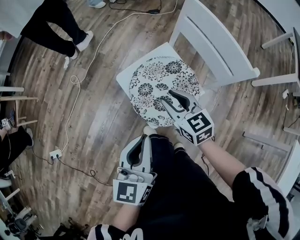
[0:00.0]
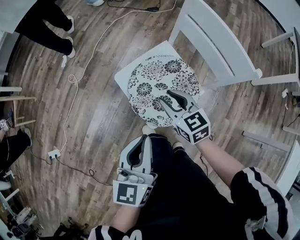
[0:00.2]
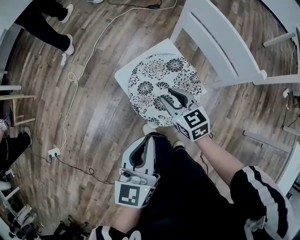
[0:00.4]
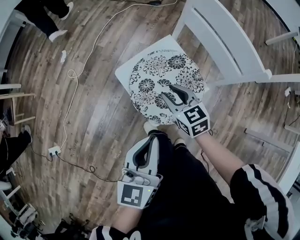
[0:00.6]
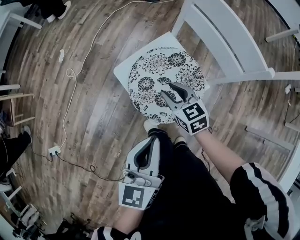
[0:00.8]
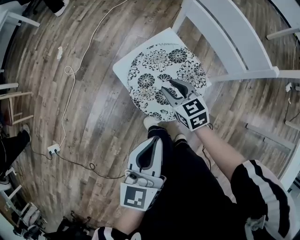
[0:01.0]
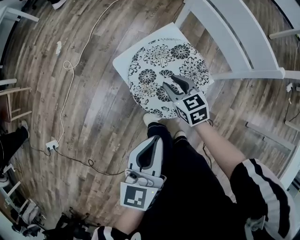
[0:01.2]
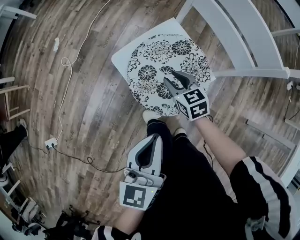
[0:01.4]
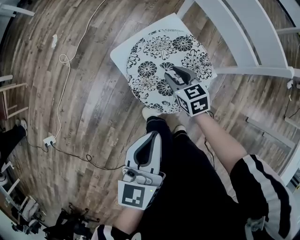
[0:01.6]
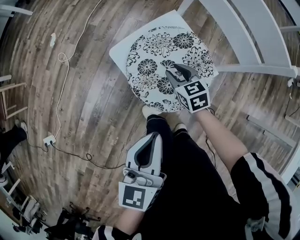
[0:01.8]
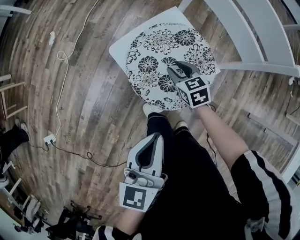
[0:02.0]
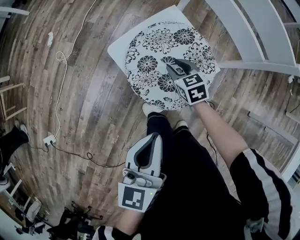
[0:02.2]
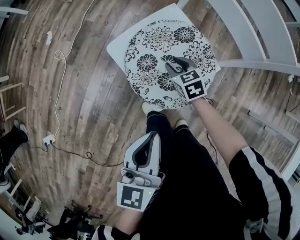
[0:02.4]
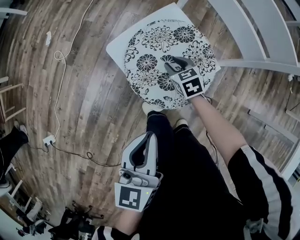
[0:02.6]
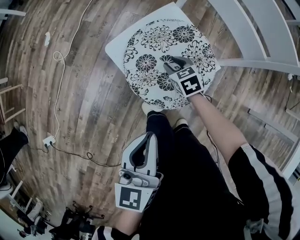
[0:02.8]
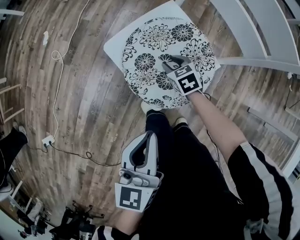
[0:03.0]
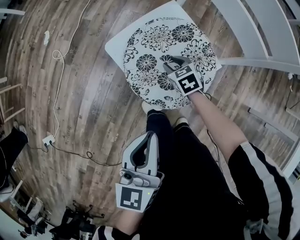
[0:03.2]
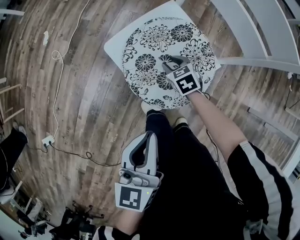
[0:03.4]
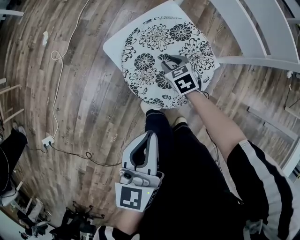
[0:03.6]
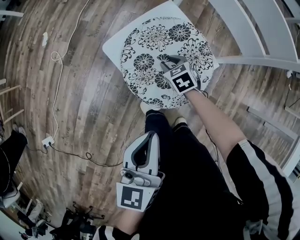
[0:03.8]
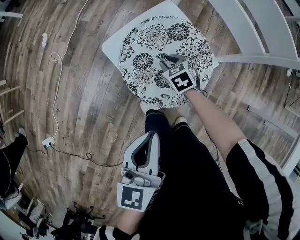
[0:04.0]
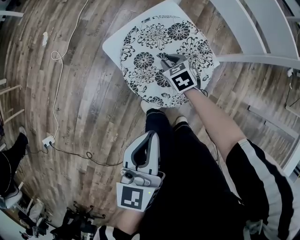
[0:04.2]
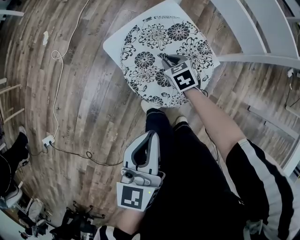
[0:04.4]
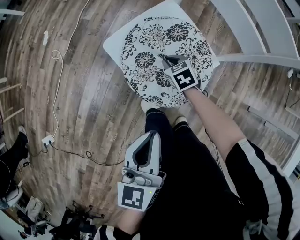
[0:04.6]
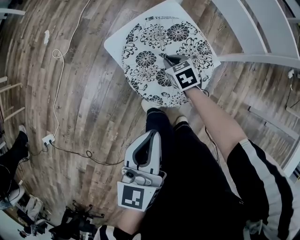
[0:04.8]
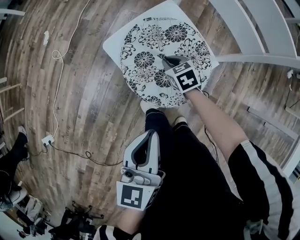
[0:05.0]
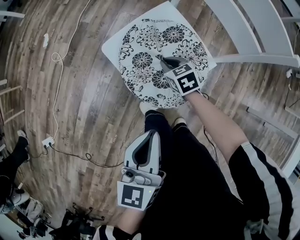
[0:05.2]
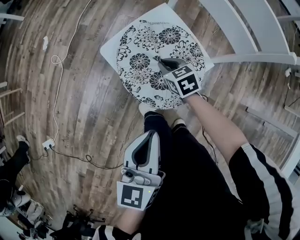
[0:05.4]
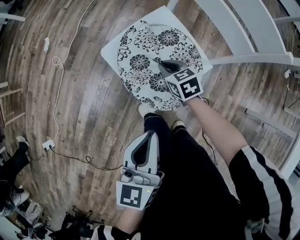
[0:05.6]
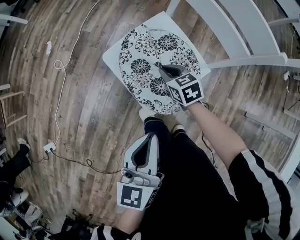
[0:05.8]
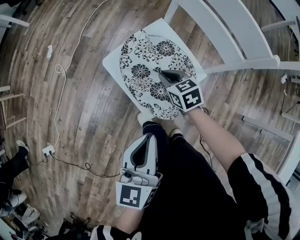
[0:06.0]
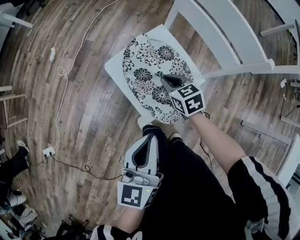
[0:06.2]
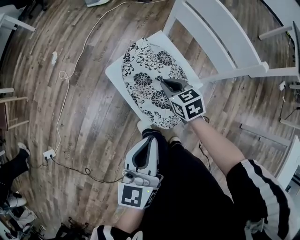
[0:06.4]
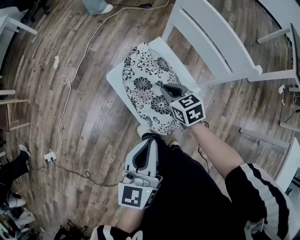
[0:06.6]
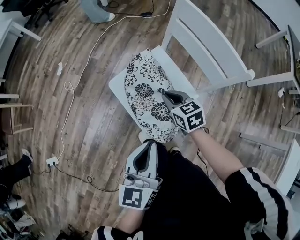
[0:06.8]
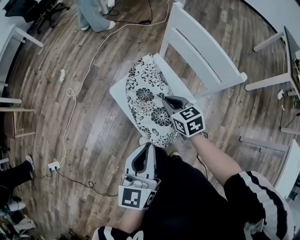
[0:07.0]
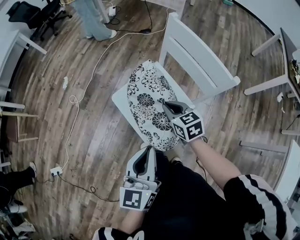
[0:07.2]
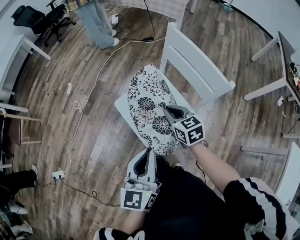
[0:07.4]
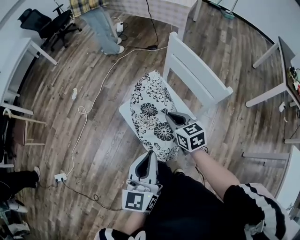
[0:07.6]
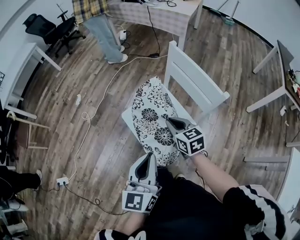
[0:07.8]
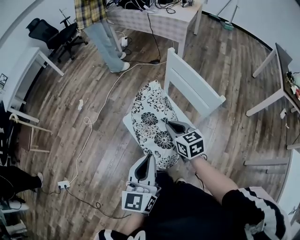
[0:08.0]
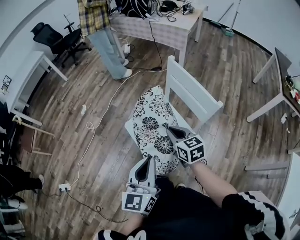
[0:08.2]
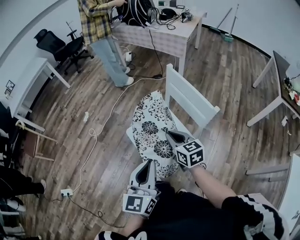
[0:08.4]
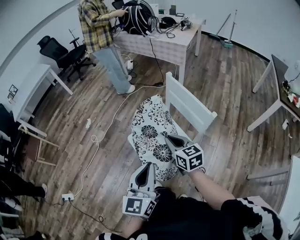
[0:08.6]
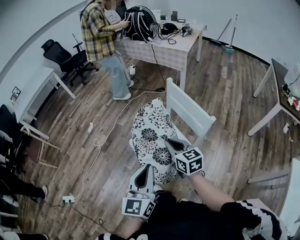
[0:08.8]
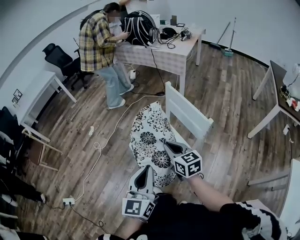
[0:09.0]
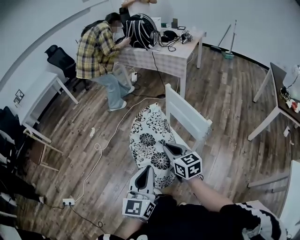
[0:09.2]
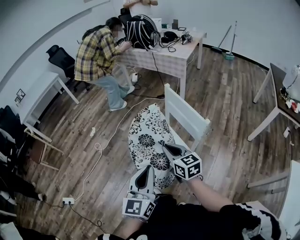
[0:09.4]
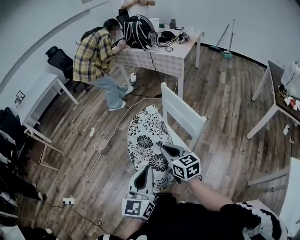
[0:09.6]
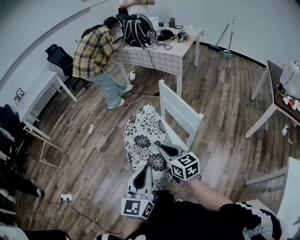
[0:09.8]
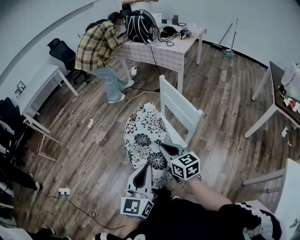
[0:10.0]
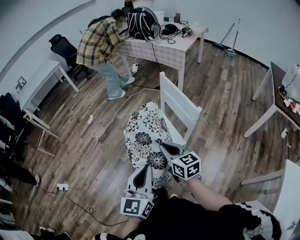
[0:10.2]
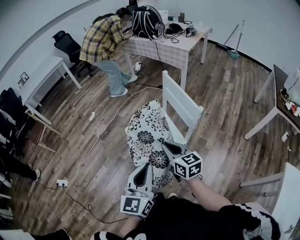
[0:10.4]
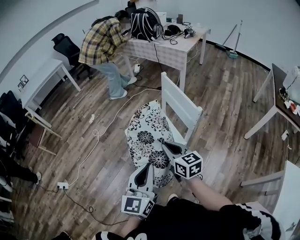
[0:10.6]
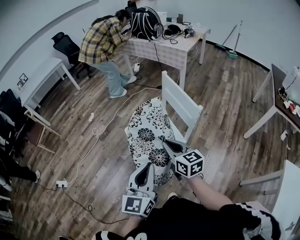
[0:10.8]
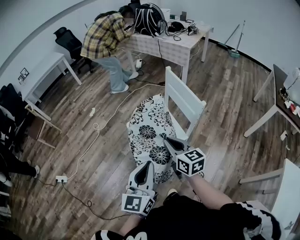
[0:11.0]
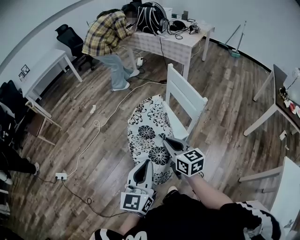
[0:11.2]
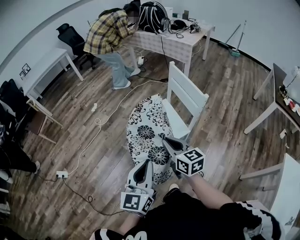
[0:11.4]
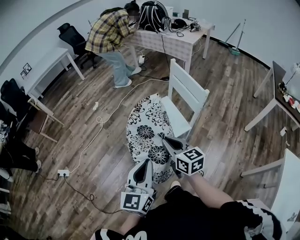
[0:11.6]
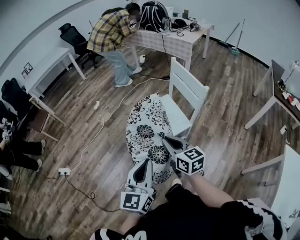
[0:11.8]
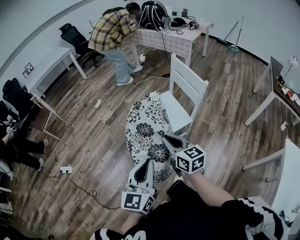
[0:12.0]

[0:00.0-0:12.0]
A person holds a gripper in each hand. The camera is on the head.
0:00.0 to 0:01.6: The right gripper is displaced downward by about 15 cm. The left gripper shifts approximately 5 cm downward.
0:01.6 to 0:03.0: The right gripper is displaced downward by roughly 10 cm.
0:03.0 to 0:04.4: The grippers make only small movements.
0:04.4 to 0:06.0: The right gripper moves upward, roughly 10 cm.
0:06.0 to 0:07.6: The left gripper heads upward, covering about 10 cm; the right gripper travels upward by about 20 cm.
0:07.6 to 0:09.0: The grippers both shift upward by approximately 10 cm.
0:09.0 to 0:10.4: The two grippers go about 10 cm backward.
0:10.4 to 0:12.0: Both grippers move backward and to the left, about 20 cm.

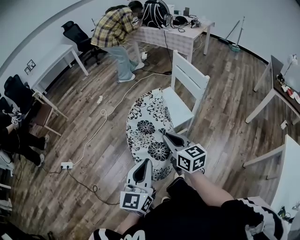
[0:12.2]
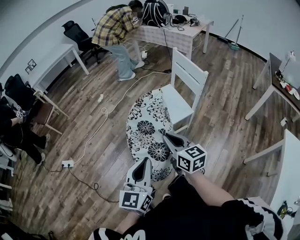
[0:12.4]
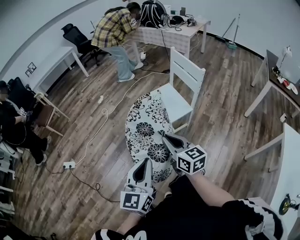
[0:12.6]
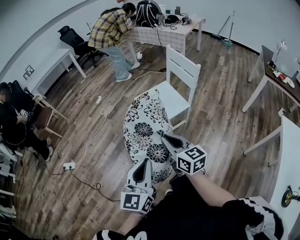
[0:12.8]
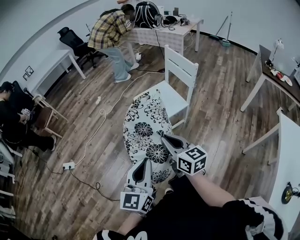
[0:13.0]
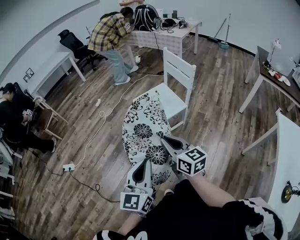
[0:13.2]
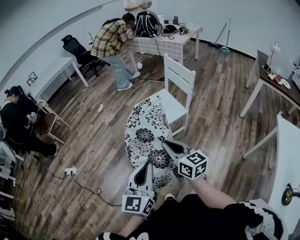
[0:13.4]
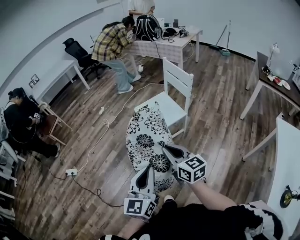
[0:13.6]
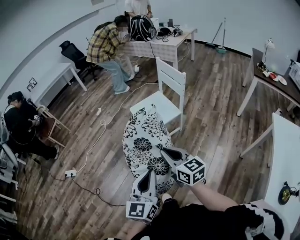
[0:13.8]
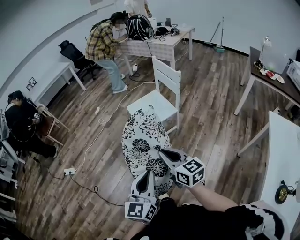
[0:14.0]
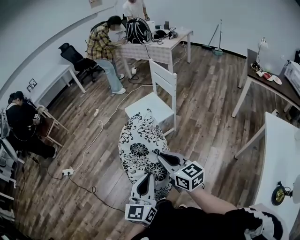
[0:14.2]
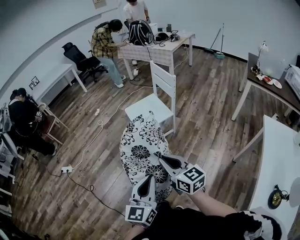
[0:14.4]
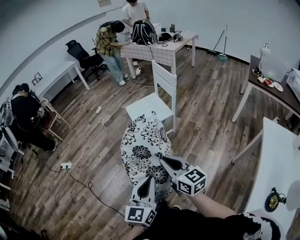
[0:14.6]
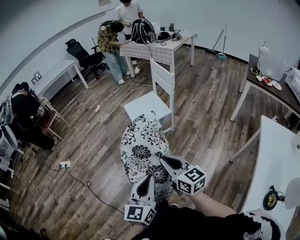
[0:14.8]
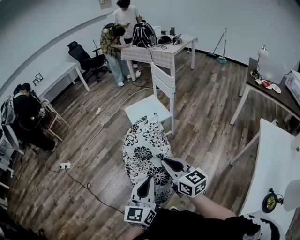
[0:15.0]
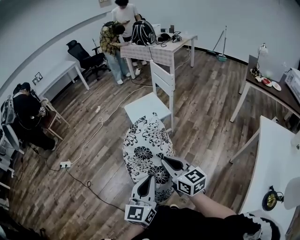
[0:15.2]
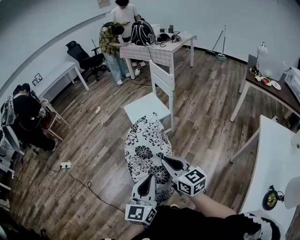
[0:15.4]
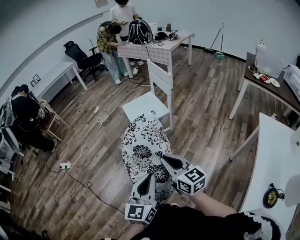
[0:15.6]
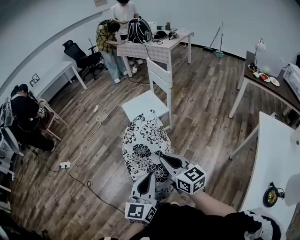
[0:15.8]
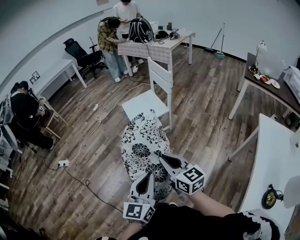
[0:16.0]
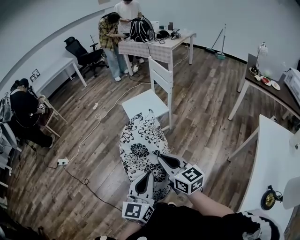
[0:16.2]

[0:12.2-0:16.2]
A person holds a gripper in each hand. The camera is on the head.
0:12.2 to 0:13.6: The two grippers go approximately 15 cm backward.
0:13.6 to 0:14.8: The two grippers go roughly 20 cm backward and to the right.
0:14.8 to 0:16.2: The grippers make only small movements.

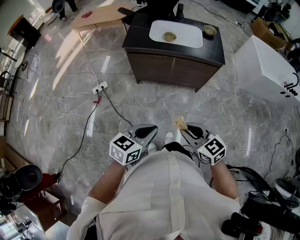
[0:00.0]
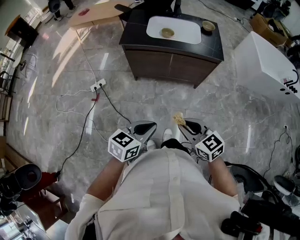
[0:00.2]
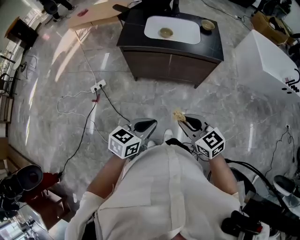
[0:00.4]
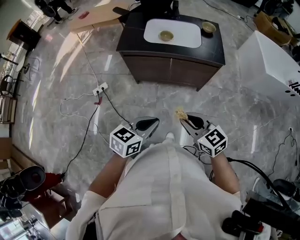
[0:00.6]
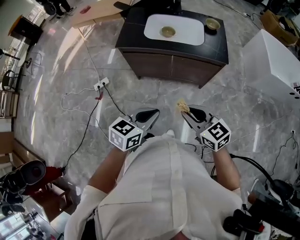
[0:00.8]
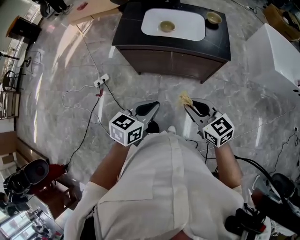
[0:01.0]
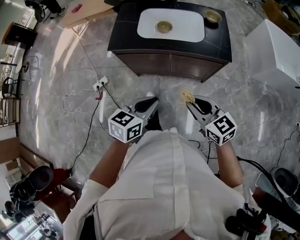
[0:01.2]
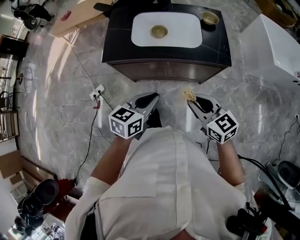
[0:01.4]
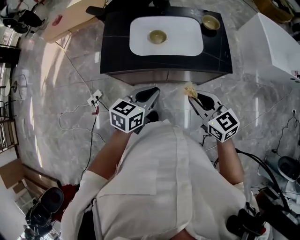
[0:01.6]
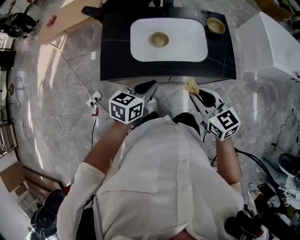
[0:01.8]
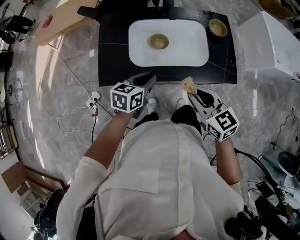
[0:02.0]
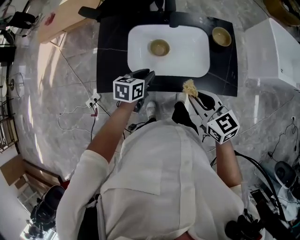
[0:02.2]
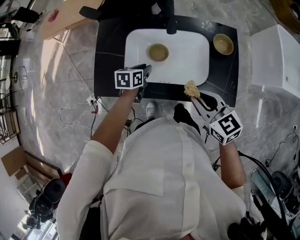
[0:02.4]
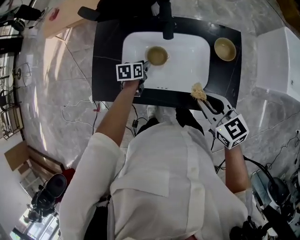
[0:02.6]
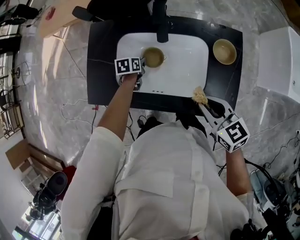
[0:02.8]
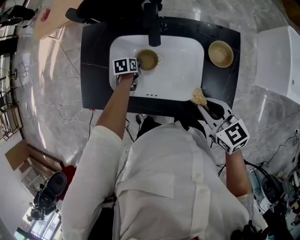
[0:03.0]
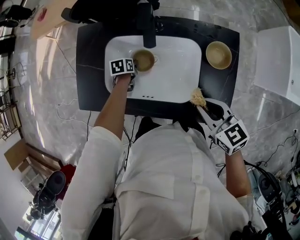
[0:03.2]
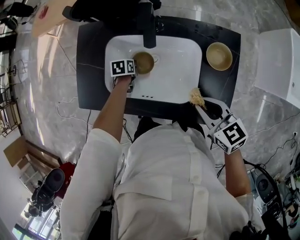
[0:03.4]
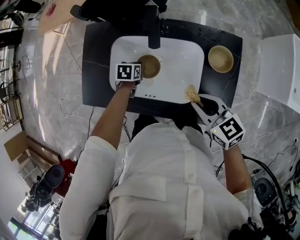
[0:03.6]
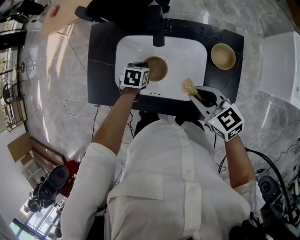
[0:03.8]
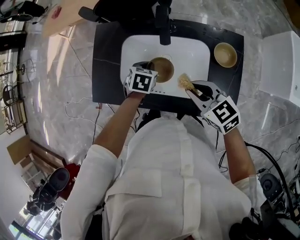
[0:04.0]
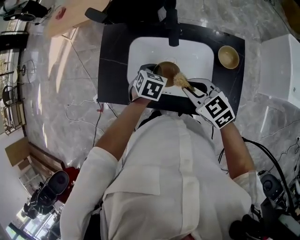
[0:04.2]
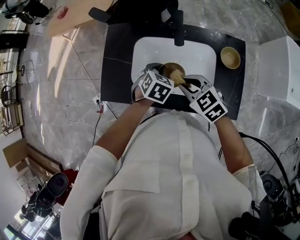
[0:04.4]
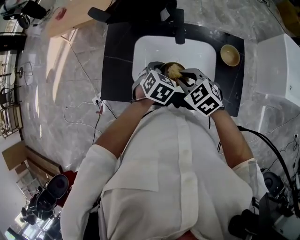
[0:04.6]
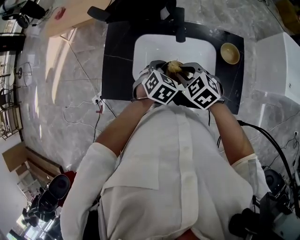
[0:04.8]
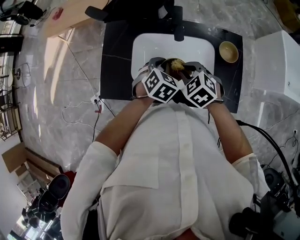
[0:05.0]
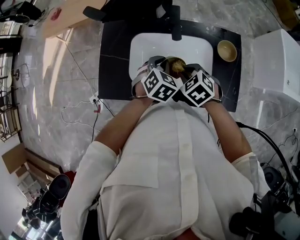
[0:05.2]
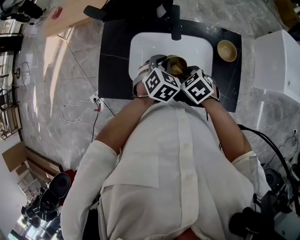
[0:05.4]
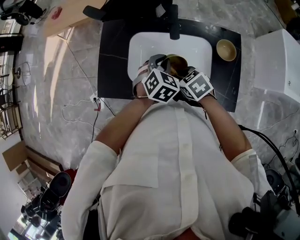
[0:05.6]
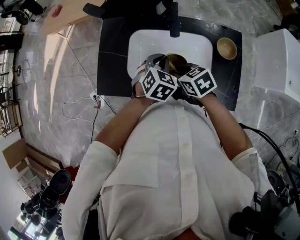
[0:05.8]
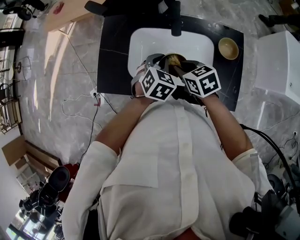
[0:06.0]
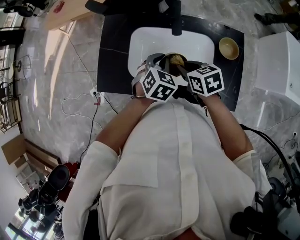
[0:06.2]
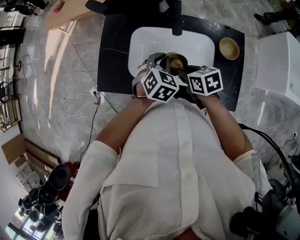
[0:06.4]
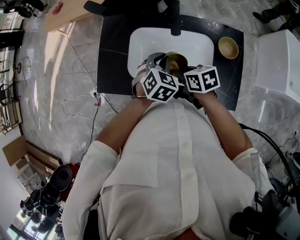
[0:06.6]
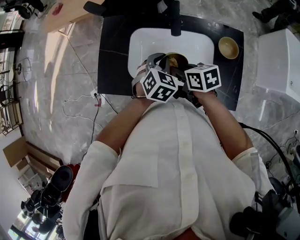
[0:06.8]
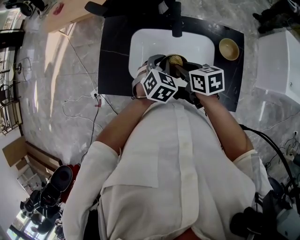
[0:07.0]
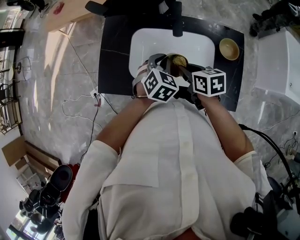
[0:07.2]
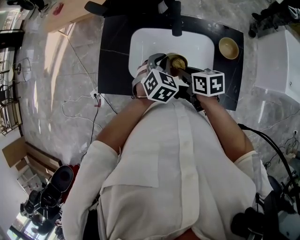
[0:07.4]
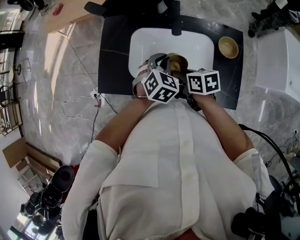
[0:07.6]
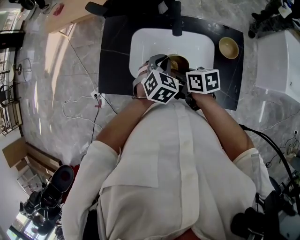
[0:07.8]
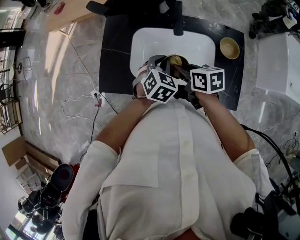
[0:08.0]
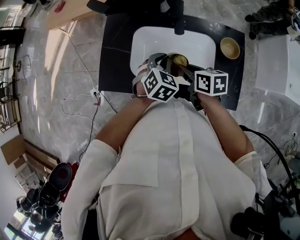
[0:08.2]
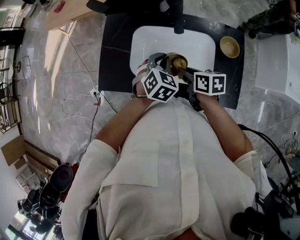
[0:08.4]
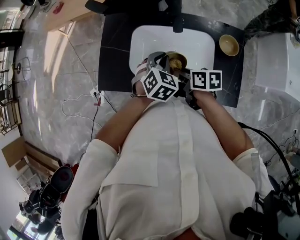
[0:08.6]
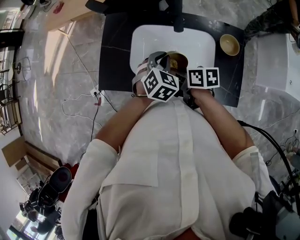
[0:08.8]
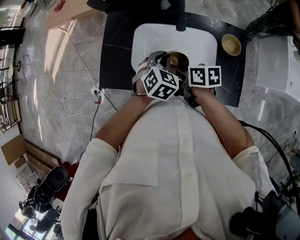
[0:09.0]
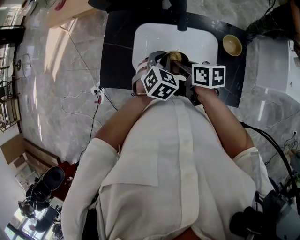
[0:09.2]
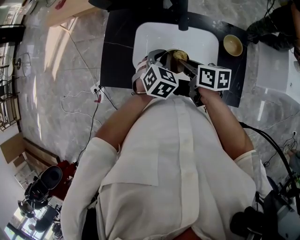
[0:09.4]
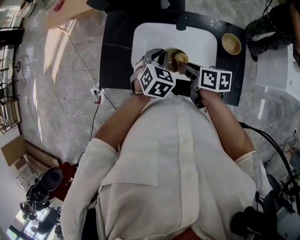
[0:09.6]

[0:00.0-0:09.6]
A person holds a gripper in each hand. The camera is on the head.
0:00.0 to 0:01.6: Both grippers travel together forward, roughly 40 cm.
0:01.6 to 0:03.2: The right gripper heads forward and to the right, covering roughly 30 cm; the left gripper travels forward and downward by some 50 cm, and points its fingers roughly 40 degrees further downward.
0:03.2 to 0:04.8: The left gripper is displaced upward by some 25 cm, and rotates around the line of its fingers by some 50 degrees, clockwise from behind; the right gripper is displaced to the left and forward by roughly 20 cm, and swivels approximately 40 degrees.
0:04.8 to 0:06.4: The right gripper shifts about 5 cm downward, and rotates around the line of its fingers by about 40 degrees, clockwise from behind.
0:06.4 to 0:08.0: The grippers make only small movements.
0:08.0 to 0:09.6: The grippers stay close to where they were, moving slightly.
